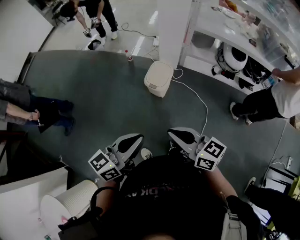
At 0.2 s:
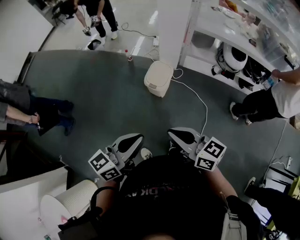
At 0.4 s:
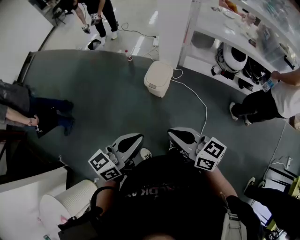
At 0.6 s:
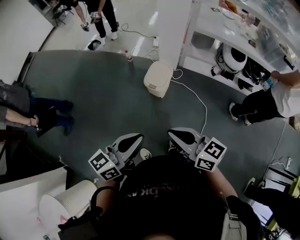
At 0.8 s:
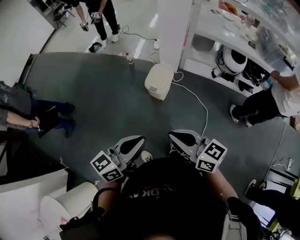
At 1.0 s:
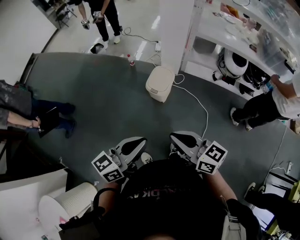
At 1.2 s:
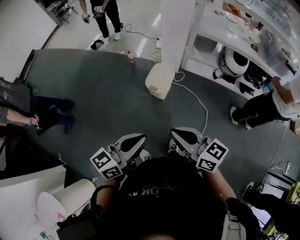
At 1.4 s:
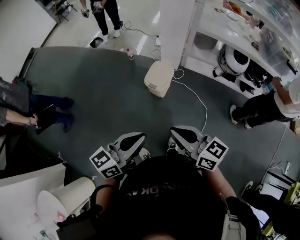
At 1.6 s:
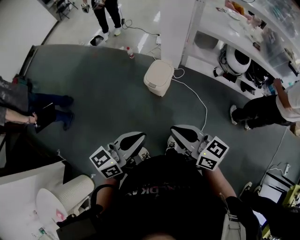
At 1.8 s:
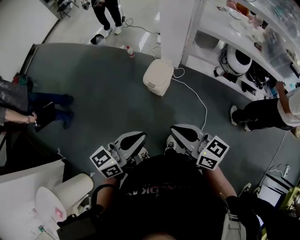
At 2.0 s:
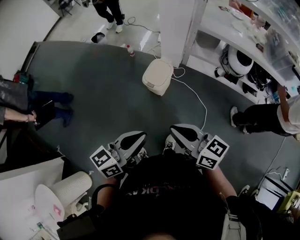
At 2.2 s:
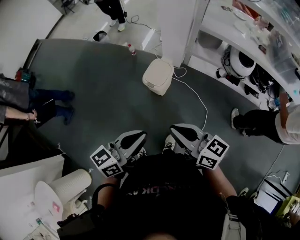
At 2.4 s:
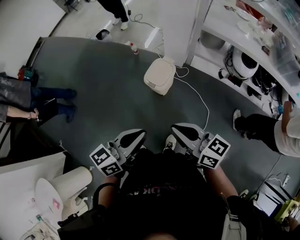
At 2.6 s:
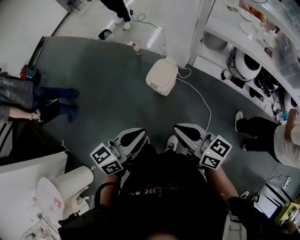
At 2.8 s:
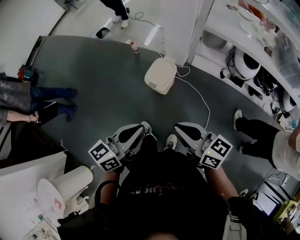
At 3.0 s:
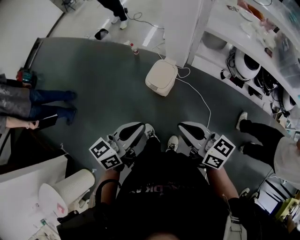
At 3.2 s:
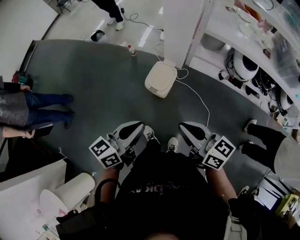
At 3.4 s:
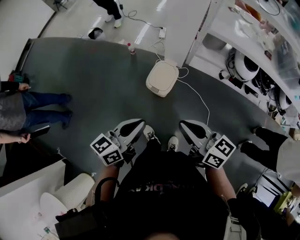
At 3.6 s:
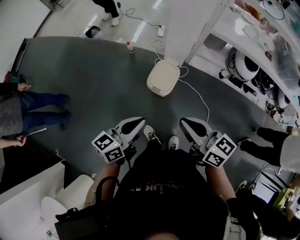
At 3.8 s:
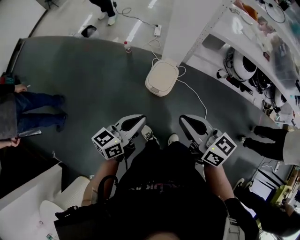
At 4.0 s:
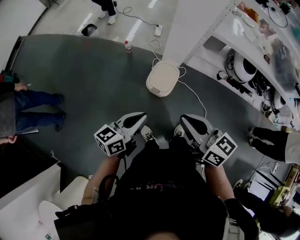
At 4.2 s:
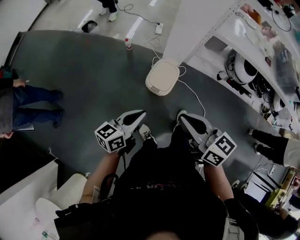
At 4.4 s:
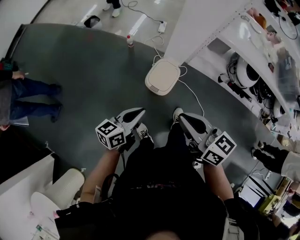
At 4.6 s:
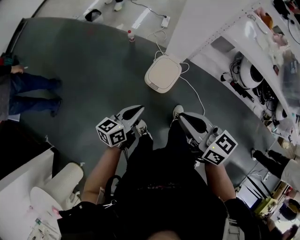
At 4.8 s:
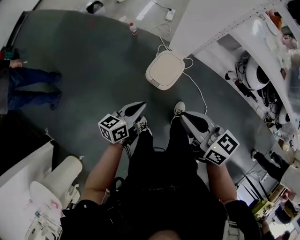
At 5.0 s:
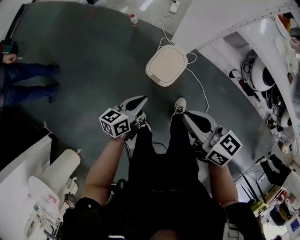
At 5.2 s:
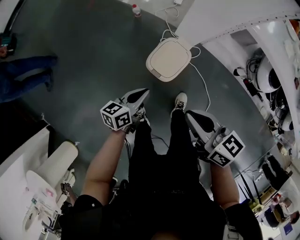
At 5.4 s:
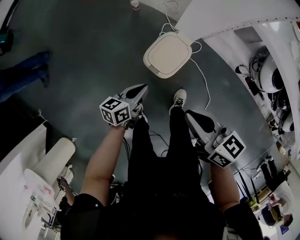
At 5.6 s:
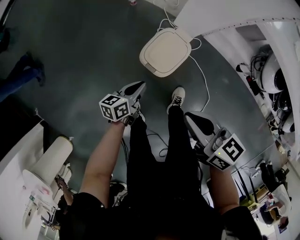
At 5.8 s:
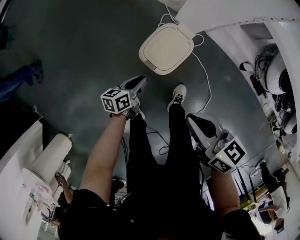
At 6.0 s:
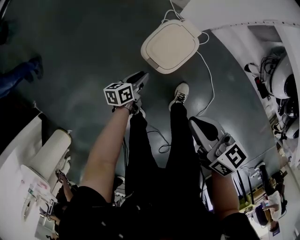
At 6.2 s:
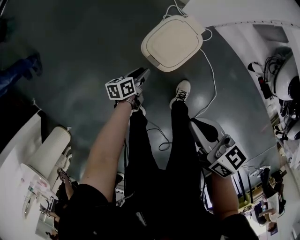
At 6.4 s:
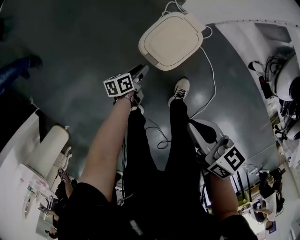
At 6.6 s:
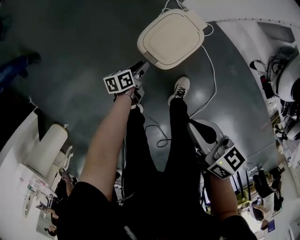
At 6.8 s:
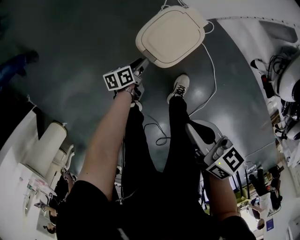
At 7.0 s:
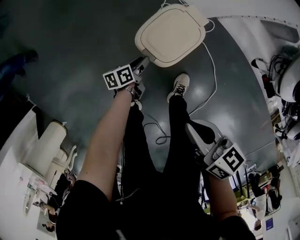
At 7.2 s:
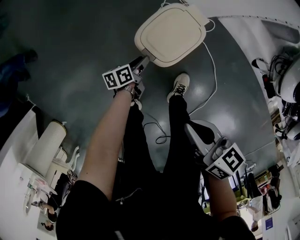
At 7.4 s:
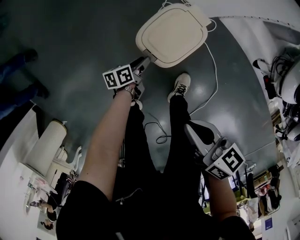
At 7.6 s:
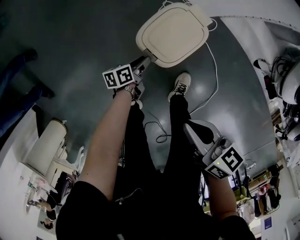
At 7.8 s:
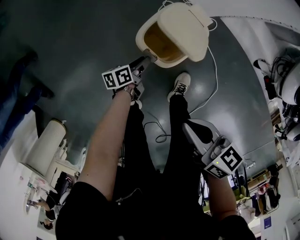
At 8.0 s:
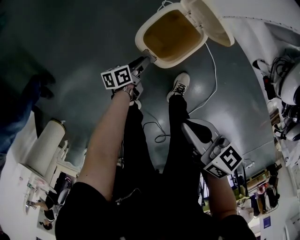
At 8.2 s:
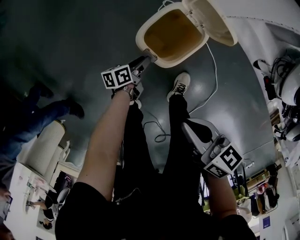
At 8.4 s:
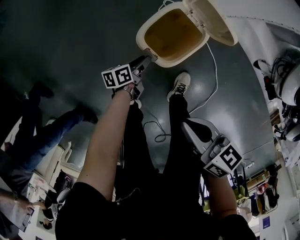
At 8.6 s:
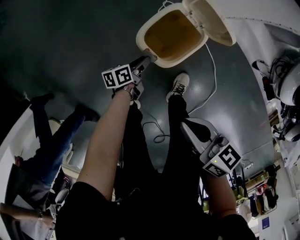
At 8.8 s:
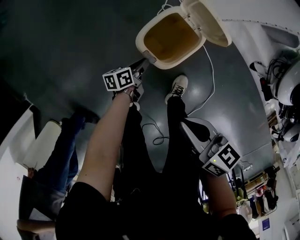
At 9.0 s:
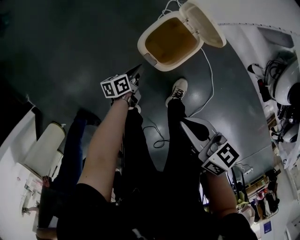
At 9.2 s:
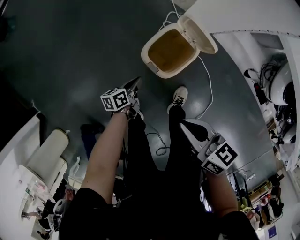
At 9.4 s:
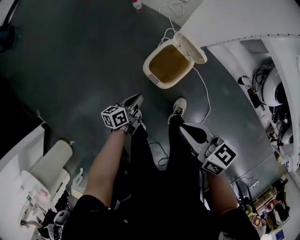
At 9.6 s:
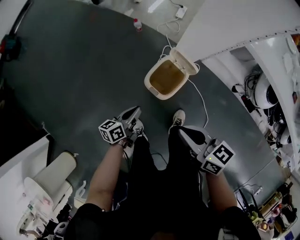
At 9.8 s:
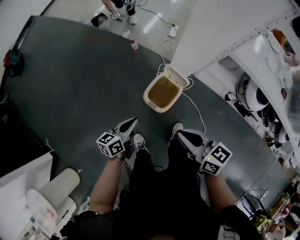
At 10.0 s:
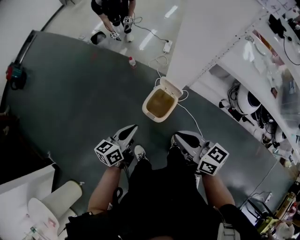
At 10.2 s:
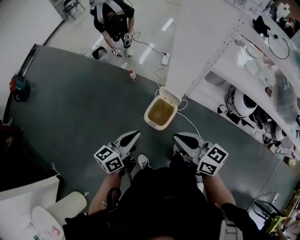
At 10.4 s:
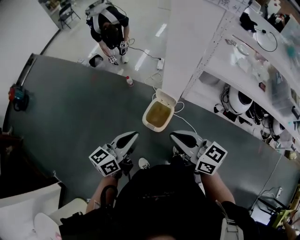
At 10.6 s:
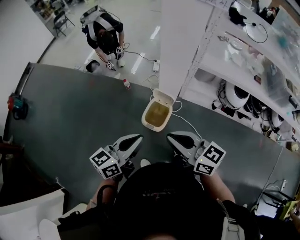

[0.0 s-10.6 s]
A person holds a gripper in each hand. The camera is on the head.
0.0 to 1.6 s: There are only small adjustments of the grippers.
1.6 to 3.0 s: The right gripper goes approximately 10 cm forward and to the right, while the left gripper is displaced forward by roughly 10 cm.
3.0 to 4.6 s: The right gripper travels forward and to the left by approximately 20 cm, while the left gripper moves forward, downward and to the left, some 25 cm.
4.6 to 6.0 s: The right gripper shifts approximately 25 cm downward; the left gripper travels downward by approximately 35 cm, rotates approximately 30 degrees, and opens up.
6.0 to 7.6 s: The two grippers go some 10 cm downward.
7.6 to 9.0 s: The left gripper closes.
9.0 to 10.6 s: The left gripper moves upward, approximately 60 cm, and angles its fingers upward, by some 30 degrees, while the right gripper goes approximately 35 cm upward, and changes its angle by roughly 40 degrees.

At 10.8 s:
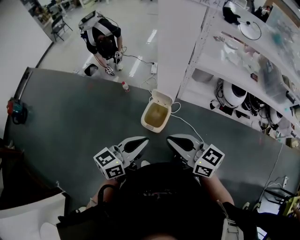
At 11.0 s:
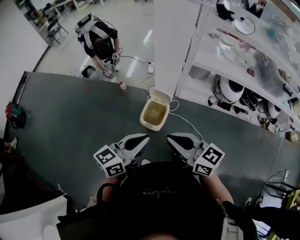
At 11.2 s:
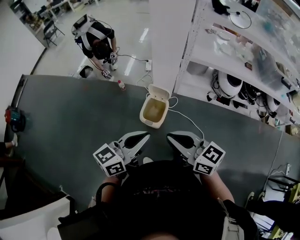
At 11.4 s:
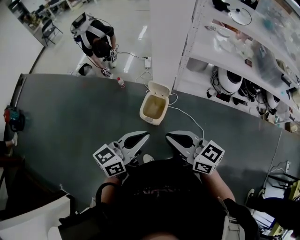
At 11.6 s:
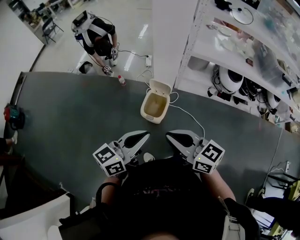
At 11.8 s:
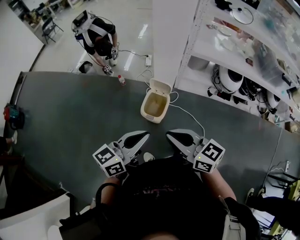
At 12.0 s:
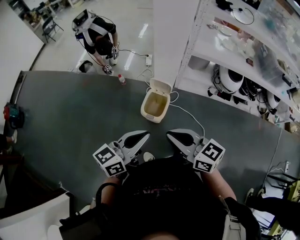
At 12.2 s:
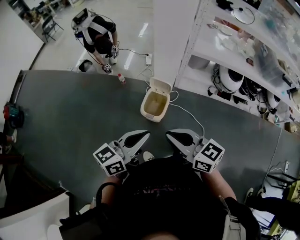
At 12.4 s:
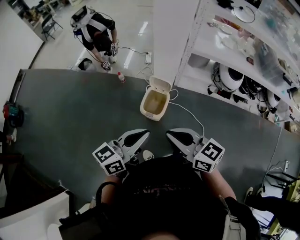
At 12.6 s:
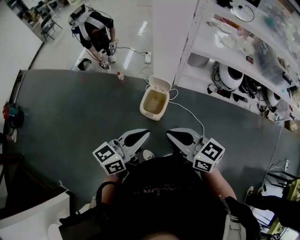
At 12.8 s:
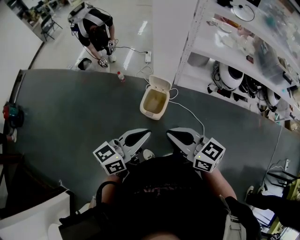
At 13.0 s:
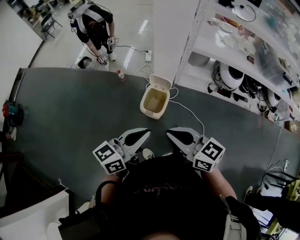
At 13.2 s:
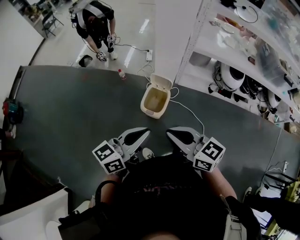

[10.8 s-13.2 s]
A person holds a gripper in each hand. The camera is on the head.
10.8 to 12.0 s: The right gripper changes place by some 5 cm.
12.0 to 13.2 s: Neither gripper changes place.

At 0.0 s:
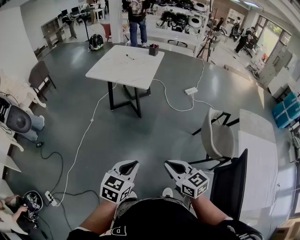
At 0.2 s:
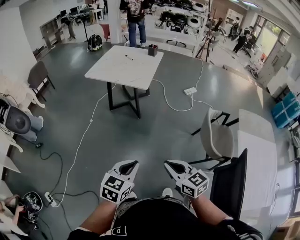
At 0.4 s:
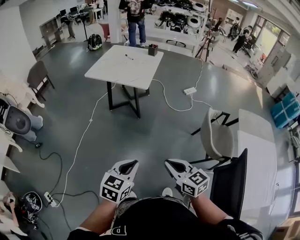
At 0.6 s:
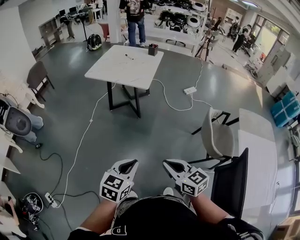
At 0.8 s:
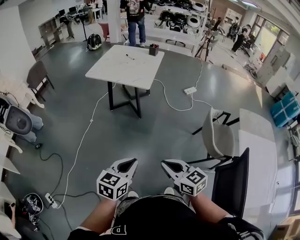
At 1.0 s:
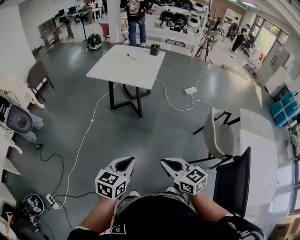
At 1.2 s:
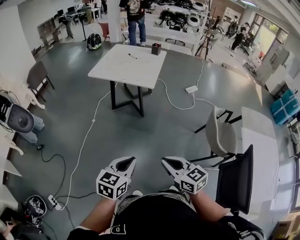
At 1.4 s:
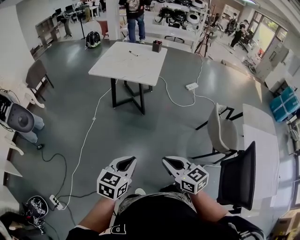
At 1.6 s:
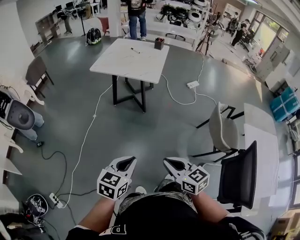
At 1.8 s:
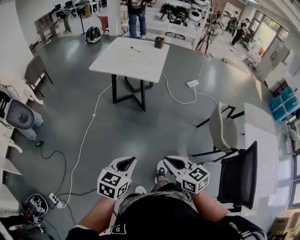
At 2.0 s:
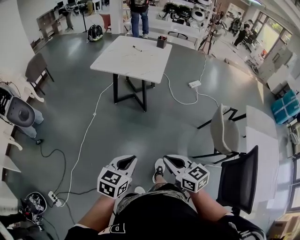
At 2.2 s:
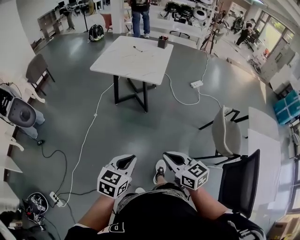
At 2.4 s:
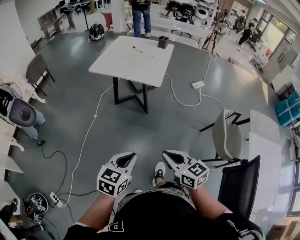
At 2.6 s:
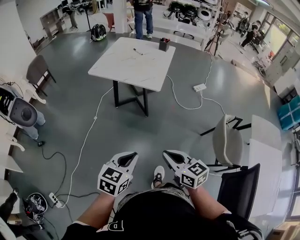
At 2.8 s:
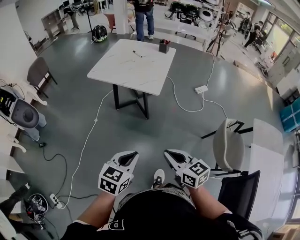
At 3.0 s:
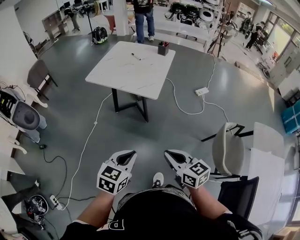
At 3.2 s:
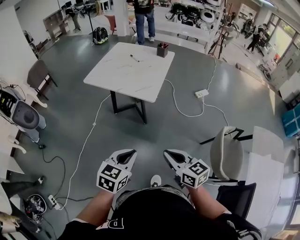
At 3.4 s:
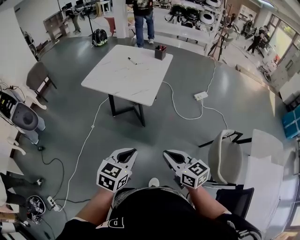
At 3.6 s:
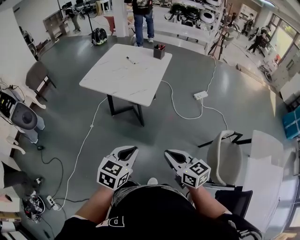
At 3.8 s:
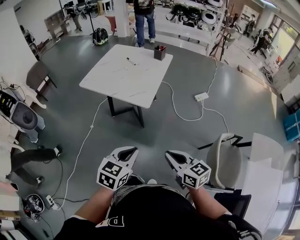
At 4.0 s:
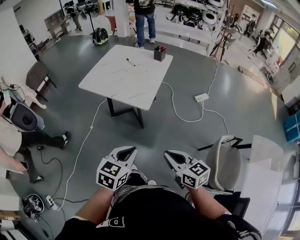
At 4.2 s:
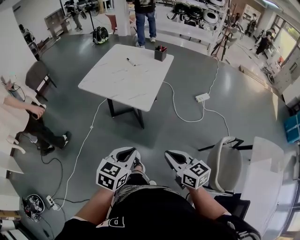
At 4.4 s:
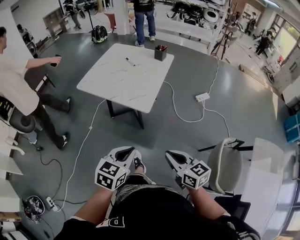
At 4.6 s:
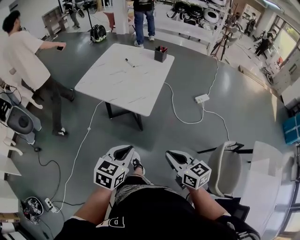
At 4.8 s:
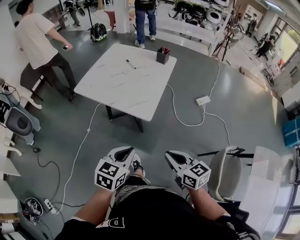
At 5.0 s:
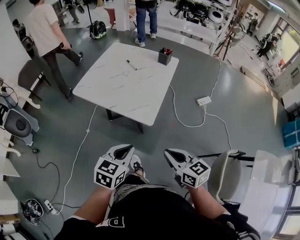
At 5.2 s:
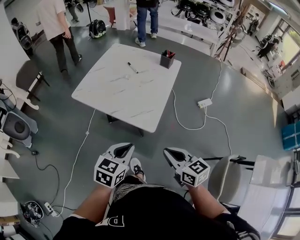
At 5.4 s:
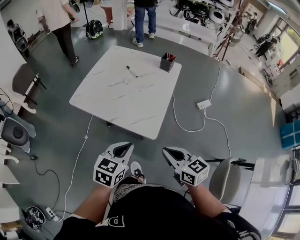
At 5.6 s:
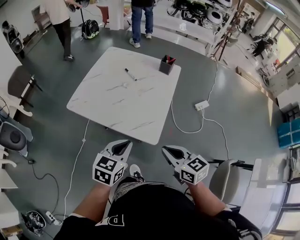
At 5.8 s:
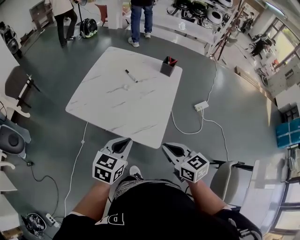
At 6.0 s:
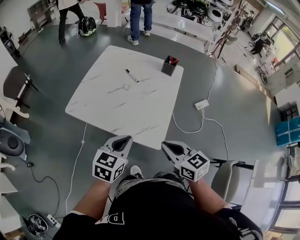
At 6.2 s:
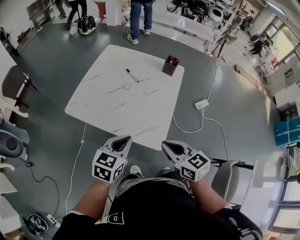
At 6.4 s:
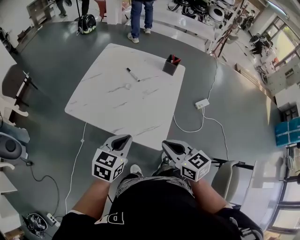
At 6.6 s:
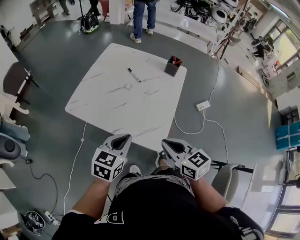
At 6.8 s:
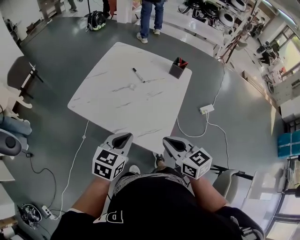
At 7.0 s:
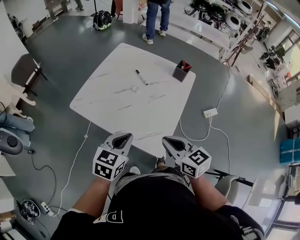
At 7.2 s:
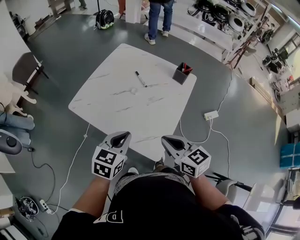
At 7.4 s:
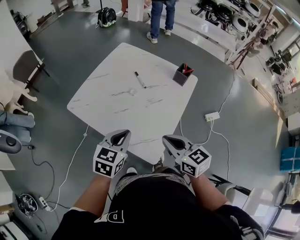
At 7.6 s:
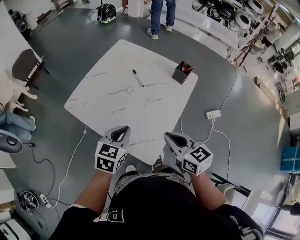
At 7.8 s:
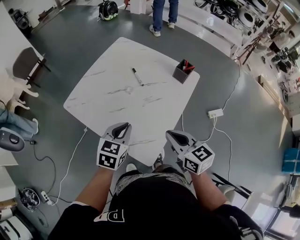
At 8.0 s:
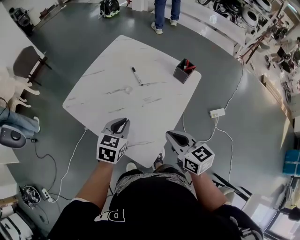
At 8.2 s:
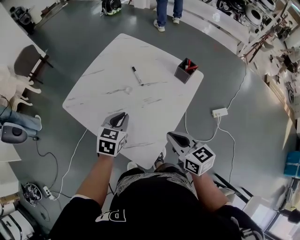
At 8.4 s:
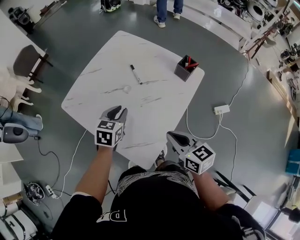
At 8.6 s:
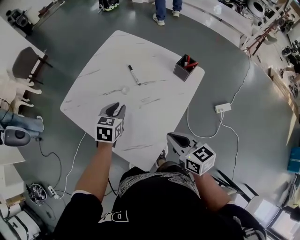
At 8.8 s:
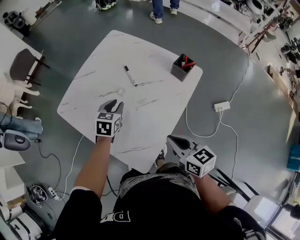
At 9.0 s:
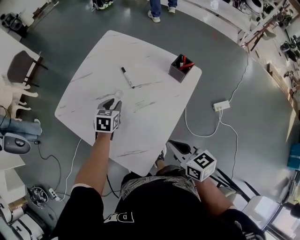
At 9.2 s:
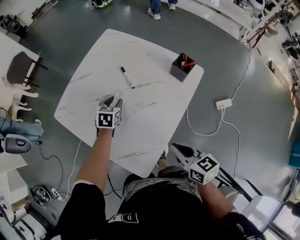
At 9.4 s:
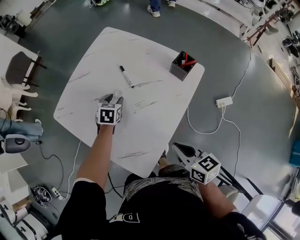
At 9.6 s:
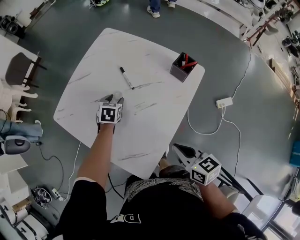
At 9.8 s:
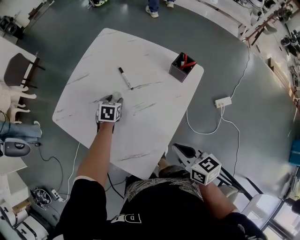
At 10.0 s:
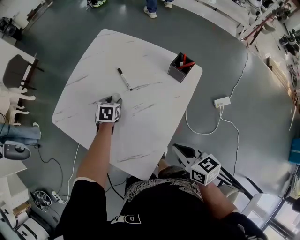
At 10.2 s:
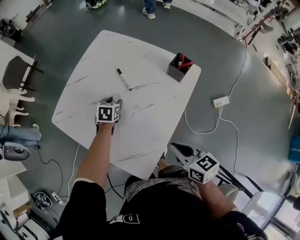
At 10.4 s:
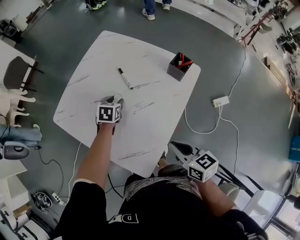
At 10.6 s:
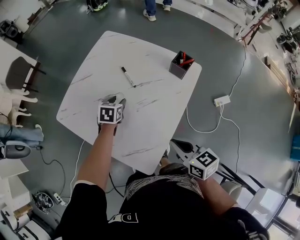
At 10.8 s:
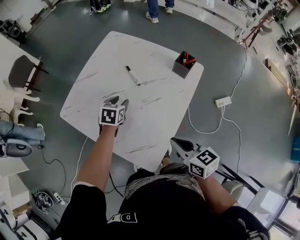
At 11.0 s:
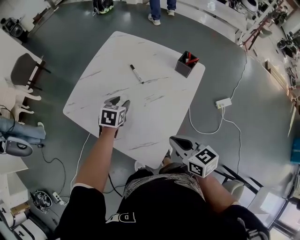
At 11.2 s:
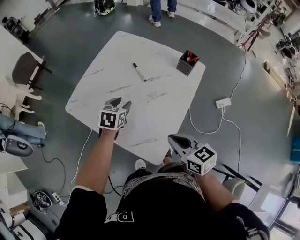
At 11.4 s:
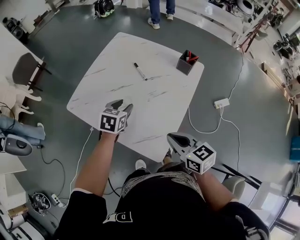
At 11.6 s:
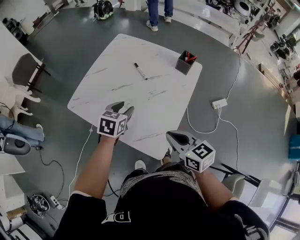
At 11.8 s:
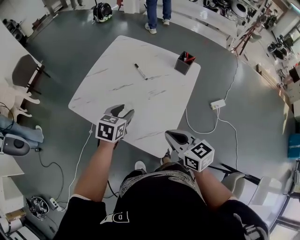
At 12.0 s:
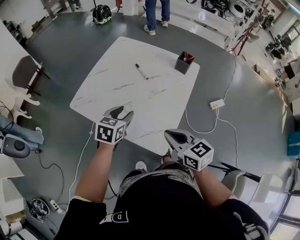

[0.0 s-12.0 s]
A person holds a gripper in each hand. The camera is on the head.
0.0 to 1.6 s: Both grippers travel together to the left, roughly 15 cm.
1.6 to 3.0 s: The two grippers go some 25 cm forward and to the right.
3.0 to 4.4 s: The two grippers go some 15 cm forward and to the right.
4.4 to 6.0 s: The grippers both shift forward by approximately 35 cm.
6.0 to 7.6 s: The left gripper travels forward by approximately 15 cm. Meanwhile the right gripper shifts about 15 cm forward and to the right.
7.6 to 9.0 s: The right gripper heads to the right and downward, covering approximately 15 cm. The left gripper heads forward and downward, covering roughly 25 cm, and opens.
10.4 to 12.0 s: The right gripper goes about 20 cm to the left, backward and upward. Meanwhile the left gripper heads backward, upward and to the left, covering roughly 30 cm, and changes its angle by approximately 20 degrees.
